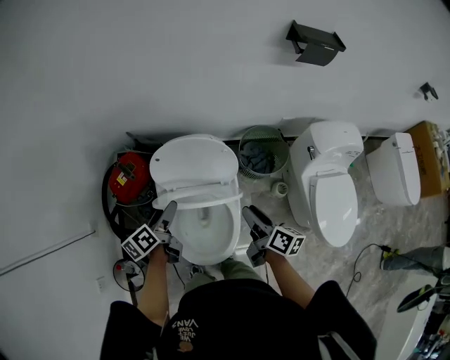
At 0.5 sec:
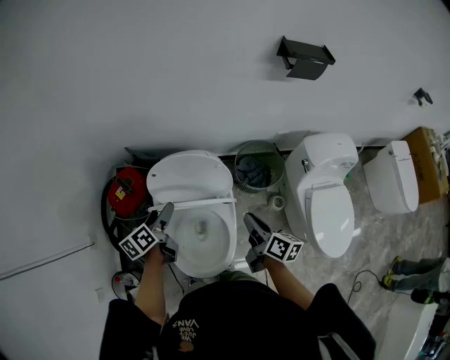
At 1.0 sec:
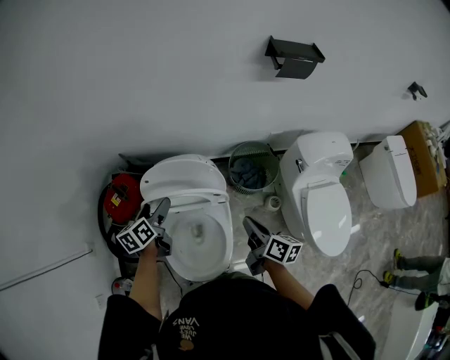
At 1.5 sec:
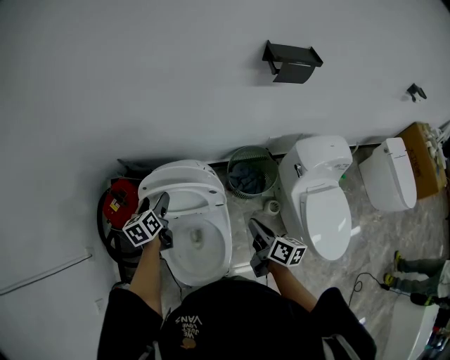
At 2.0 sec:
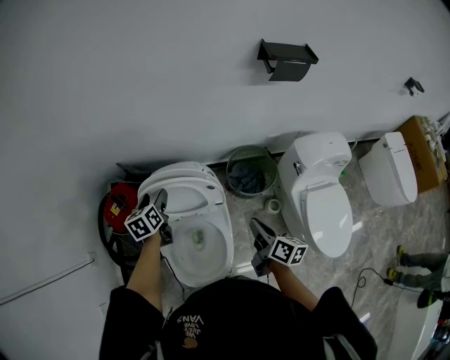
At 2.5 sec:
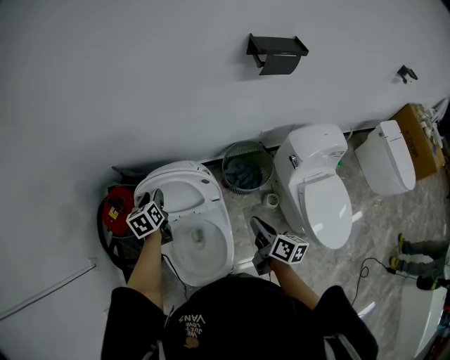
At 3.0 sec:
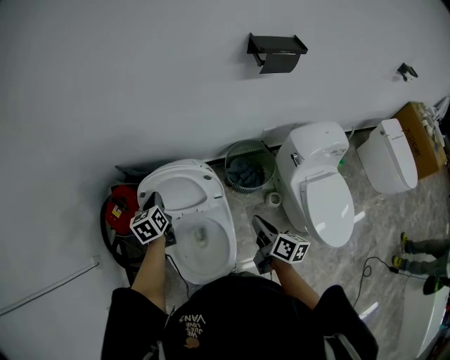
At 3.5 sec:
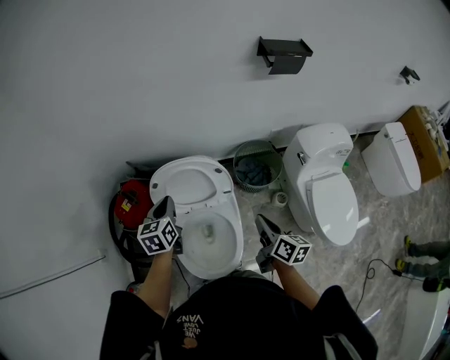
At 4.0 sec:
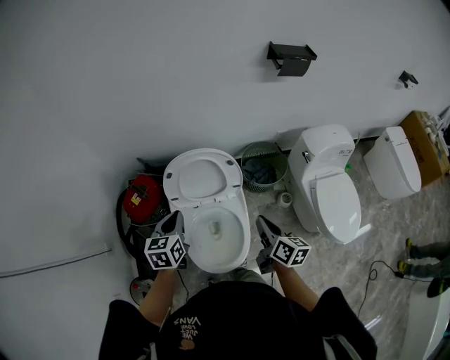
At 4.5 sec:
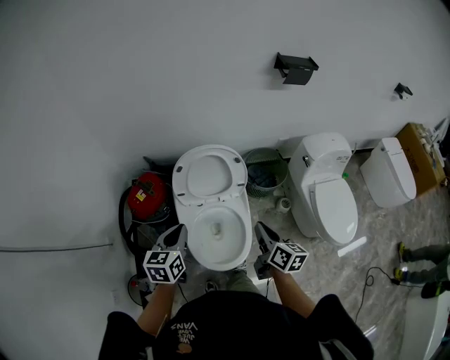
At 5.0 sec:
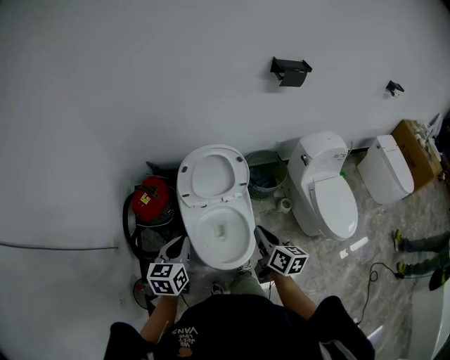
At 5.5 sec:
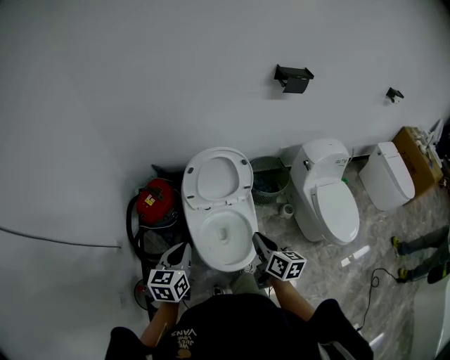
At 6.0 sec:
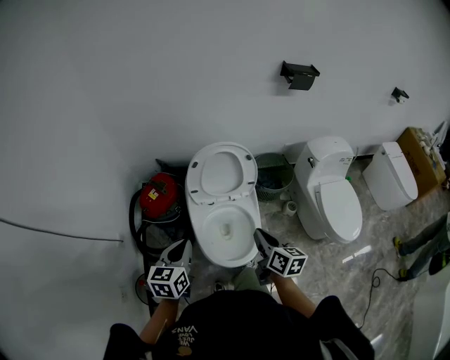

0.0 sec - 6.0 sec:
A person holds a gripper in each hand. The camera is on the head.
0.0 sec - 2.0 sec: The left gripper goes some 15 cm forward, and rotates some 30 degrees, while the right gripper heads to the right, covering about 10 cm, and closes up.
2.0 sec - 4.0 sec: The right gripper travels backward and to the left by roughly 10 cm; the left gripper shifts approximately 20 cm backward and upward, and closes up.
4.0 sec - 6.0 sec: The right gripper moves backward and to the left, some 15 cm, while the left gripper moves backward, roughly 20 cm.

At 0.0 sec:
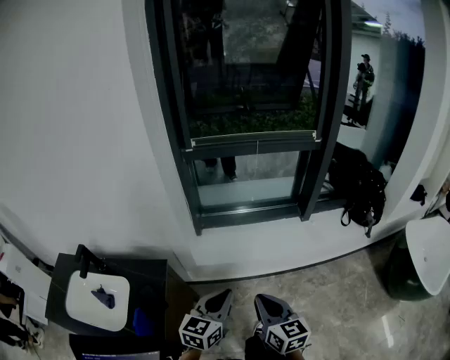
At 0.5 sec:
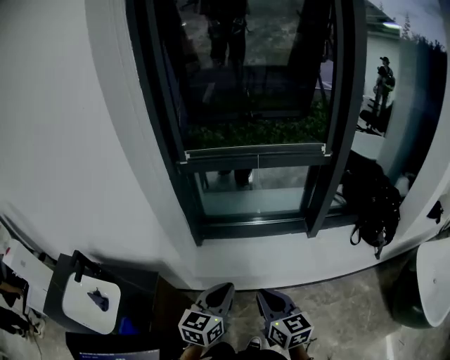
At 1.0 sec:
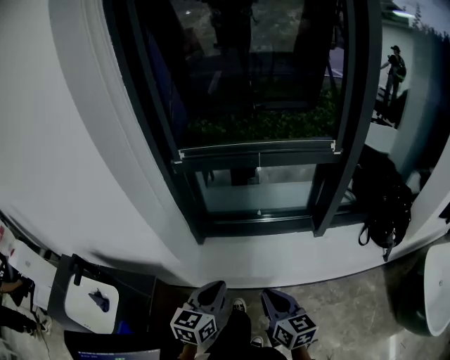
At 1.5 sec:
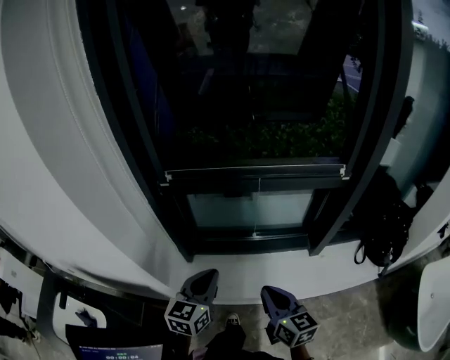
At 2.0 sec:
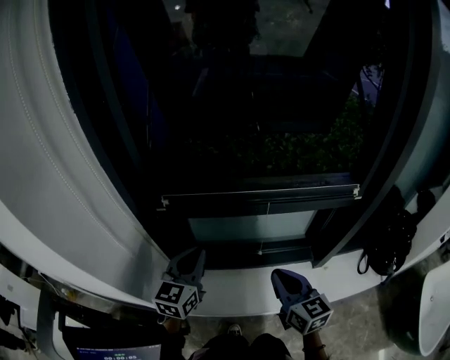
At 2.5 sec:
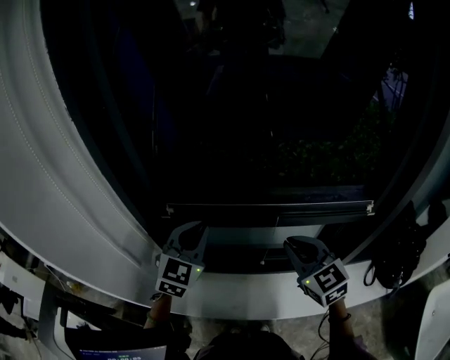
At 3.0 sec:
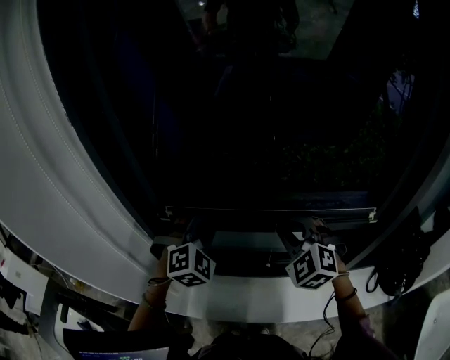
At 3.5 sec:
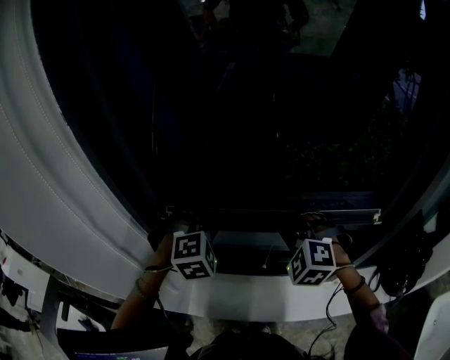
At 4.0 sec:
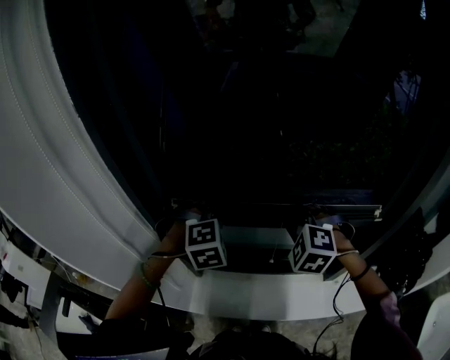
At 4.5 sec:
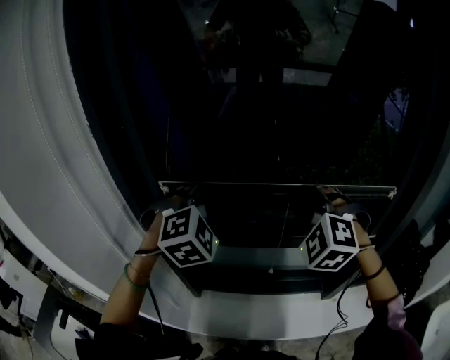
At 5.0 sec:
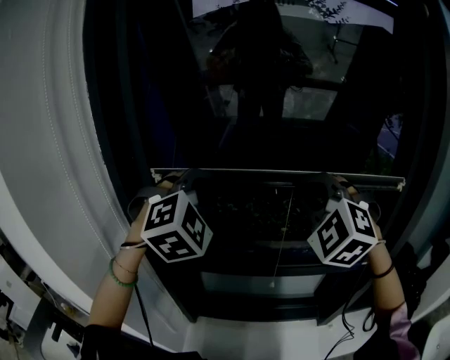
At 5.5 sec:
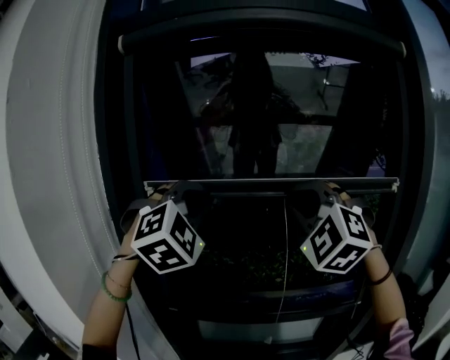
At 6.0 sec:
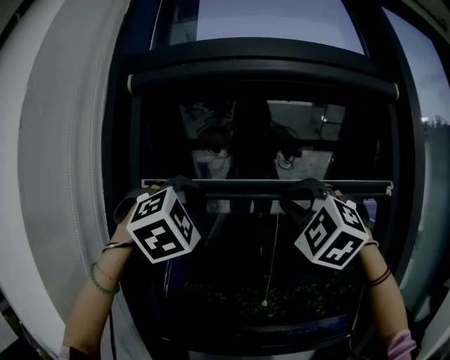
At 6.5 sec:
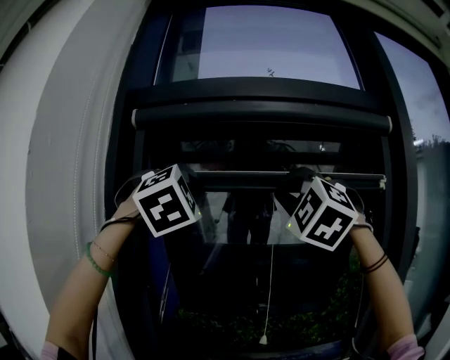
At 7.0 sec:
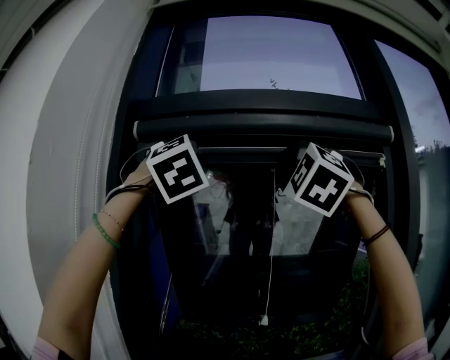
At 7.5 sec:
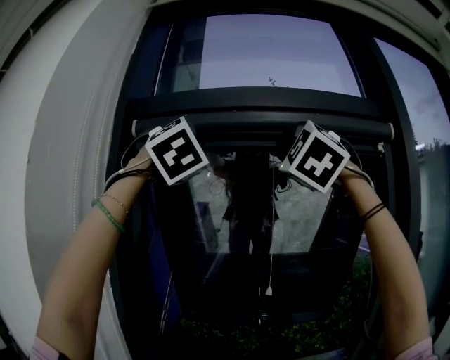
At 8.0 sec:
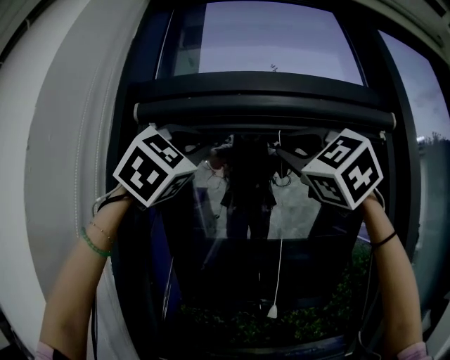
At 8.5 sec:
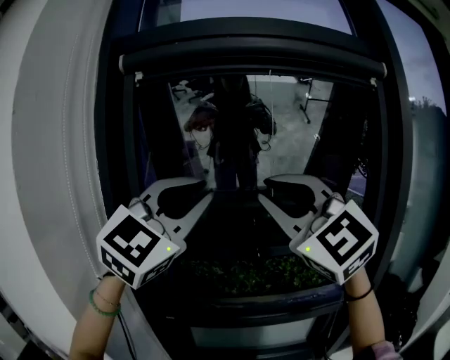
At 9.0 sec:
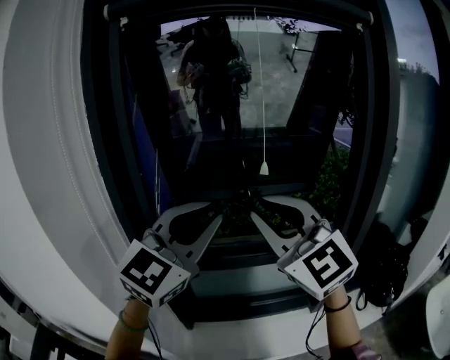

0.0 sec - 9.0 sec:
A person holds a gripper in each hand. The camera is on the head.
0.0 sec - 2.0 sec: The pair of grippers is taken forward, roughly 50 cm.
2.0 sec - 4.5 sec: The two grippers go about 25 cm upward and forward. The right gripper rolls counterclockwise, seen from behind, by some 80 degrees; the left gripper rotates around the line of its fingers by roughly 60 degrees, clockwise from behind.
4.5 sec - 7.0 sec: Both grippers move upward, some 50 cm. The left gripper tilts its fingers approximately 30 degrees upward; the right gripper tilts its fingers some 30 degrees upward.
7.0 sec - 9.0 sec: Both grippers travel together downward and backward, some 40 cm. The left gripper swivels approximately 70 degrees. The right gripper twists approximately 50 degrees clockwise, seen from behind.

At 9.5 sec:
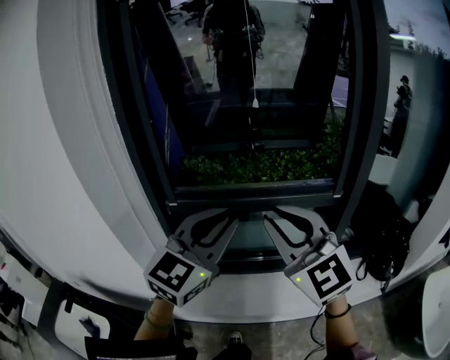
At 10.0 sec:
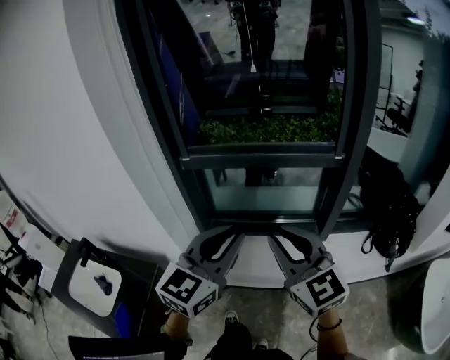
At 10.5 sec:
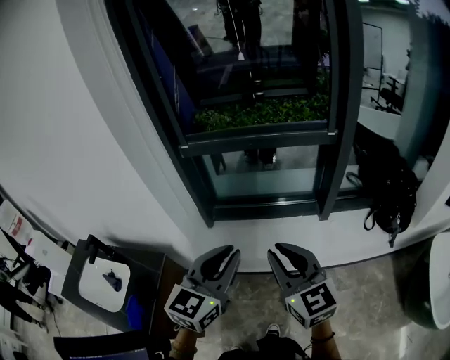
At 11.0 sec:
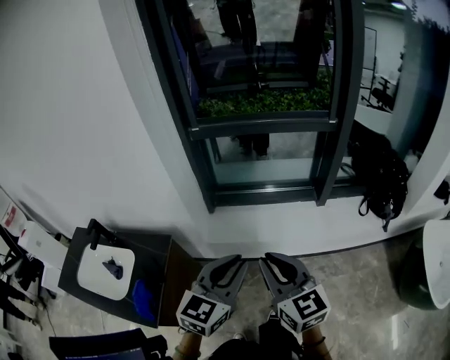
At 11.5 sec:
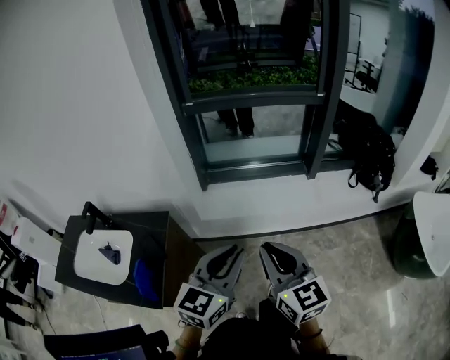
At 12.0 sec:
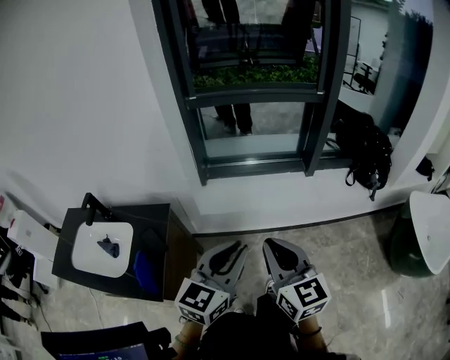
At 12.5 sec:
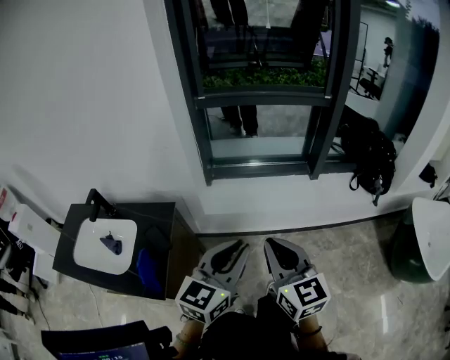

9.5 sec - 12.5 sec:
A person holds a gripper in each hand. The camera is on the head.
9.5 sec - 11.0 sec: The two grippers go approximately 40 cm backward and downward. The left gripper rotates roughly 20 degrees; the right gripper swivels roughly 40 degrees.
11.0 sec - 12.5 sec: The two grippers go approximately 15 cm backward and to the left.

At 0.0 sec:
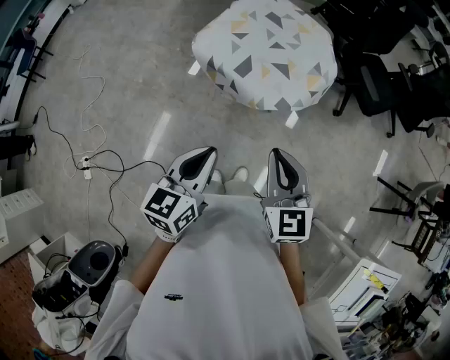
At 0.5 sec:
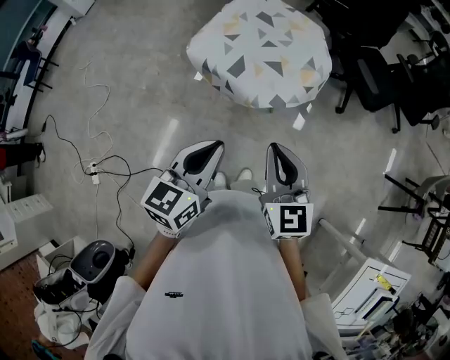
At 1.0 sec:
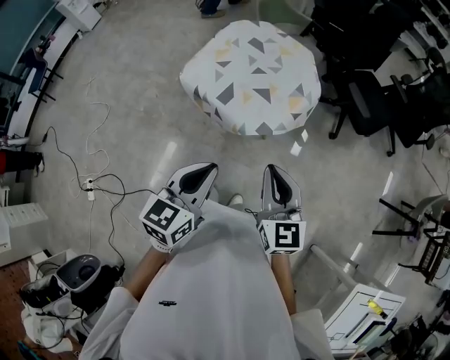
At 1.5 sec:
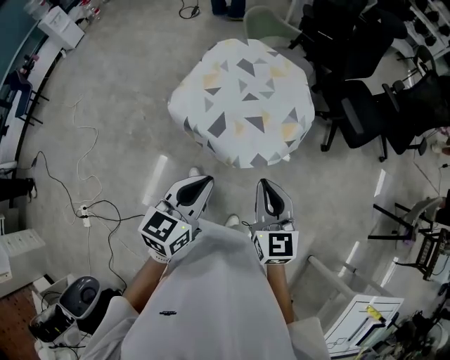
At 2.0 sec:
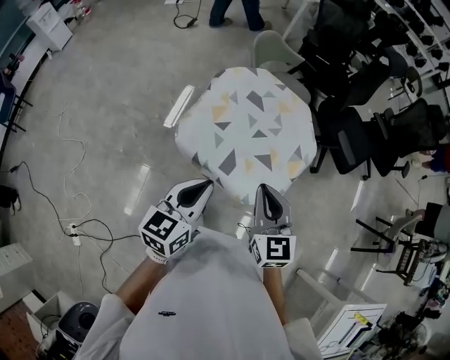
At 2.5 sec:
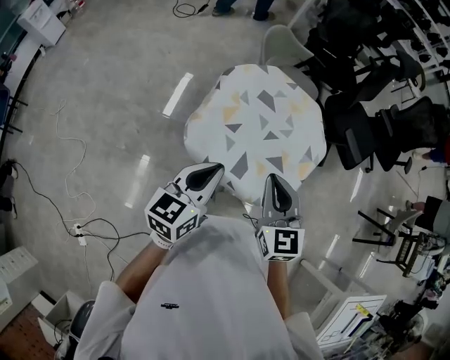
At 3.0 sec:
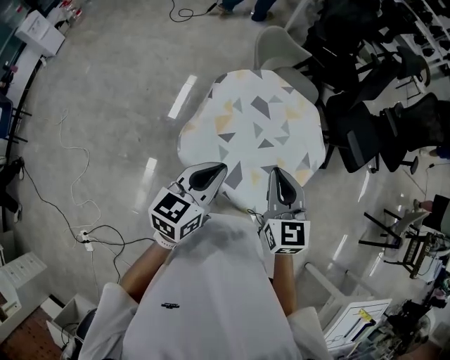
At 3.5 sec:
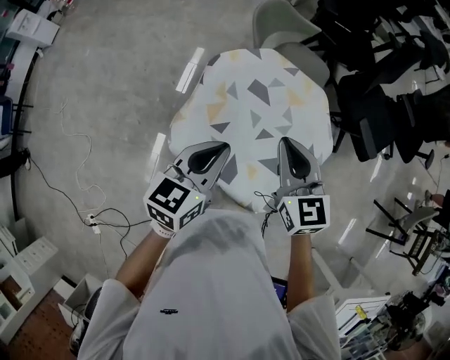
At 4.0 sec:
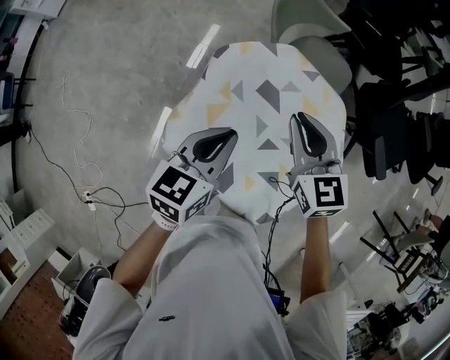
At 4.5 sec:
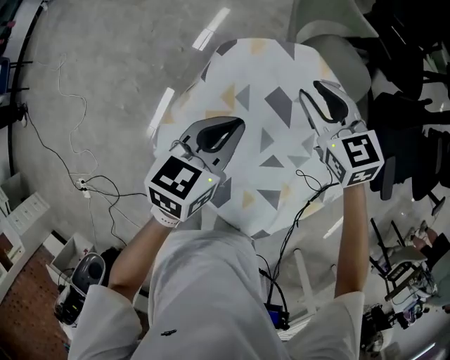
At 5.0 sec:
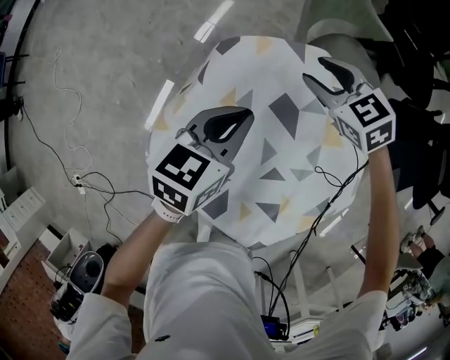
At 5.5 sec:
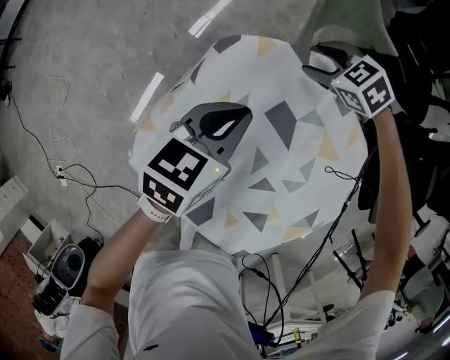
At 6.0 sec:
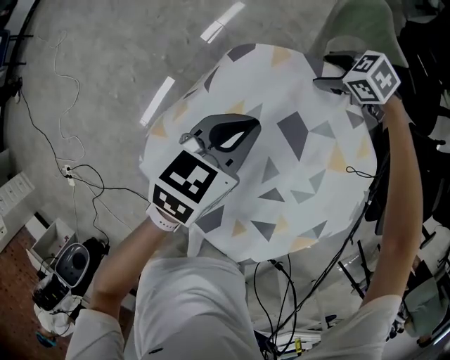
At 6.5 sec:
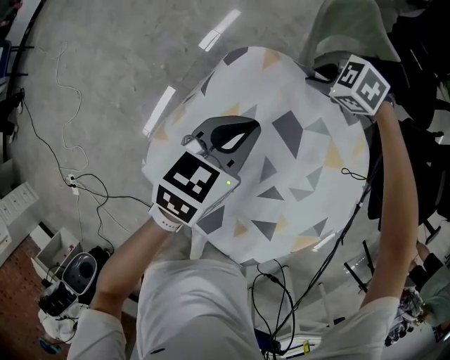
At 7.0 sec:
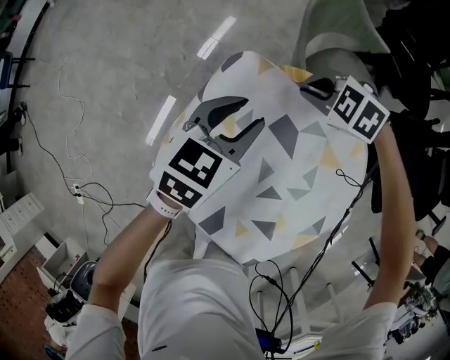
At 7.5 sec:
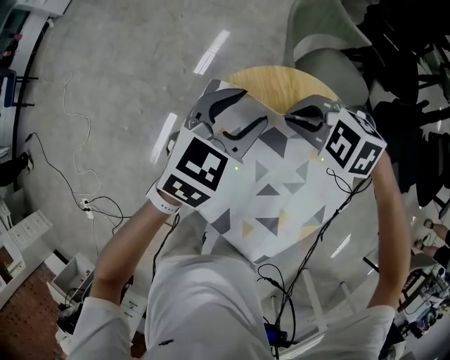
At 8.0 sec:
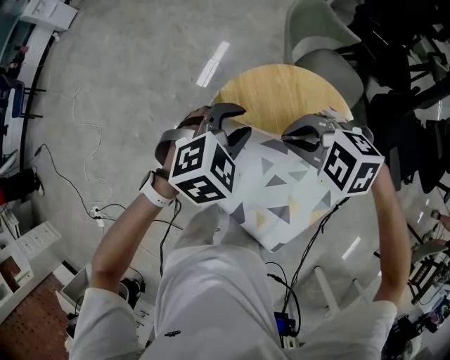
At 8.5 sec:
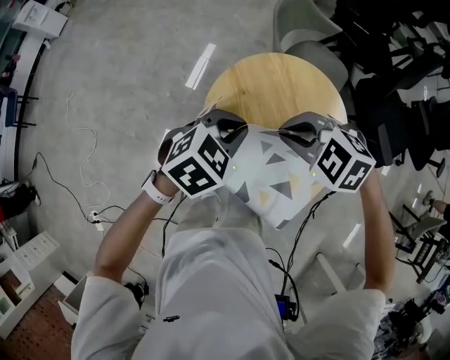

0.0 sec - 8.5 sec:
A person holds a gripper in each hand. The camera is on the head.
0.0 sec - 2.0 sec: Both grippers travel together forward, some 25 cm.
2.0 sec - 4.0 sec: Both grippers travel together forward, some 35 cm.
4.0 sec - 6.5 sec: The left gripper goes some 15 cm downward. The right gripper goes about 25 cm downward, tips its fingers downward by about 40 degrees, and opens, then closes once more.
6.5 sec - 8.5 sec: The right gripper shifts by approximately 35 cm, while the left gripper is displaced upward by roughly 10 cm, swivels some 40 degrees, and opens and closes again.
